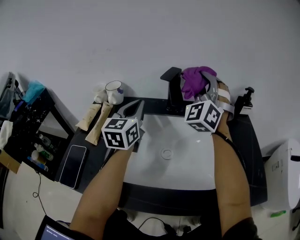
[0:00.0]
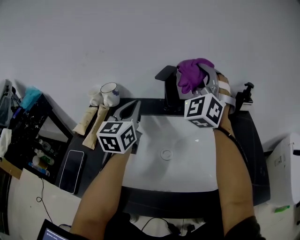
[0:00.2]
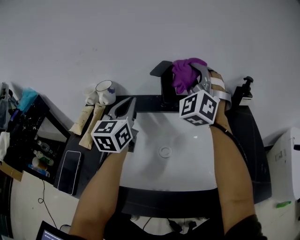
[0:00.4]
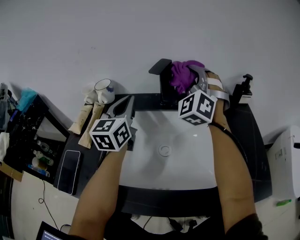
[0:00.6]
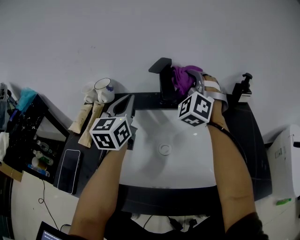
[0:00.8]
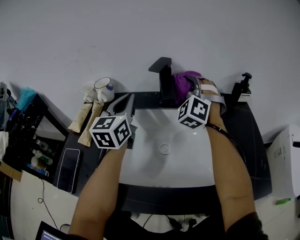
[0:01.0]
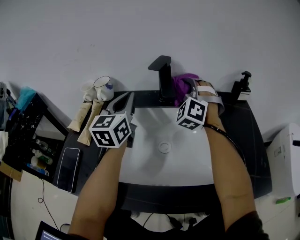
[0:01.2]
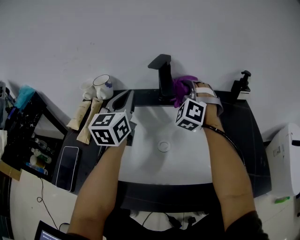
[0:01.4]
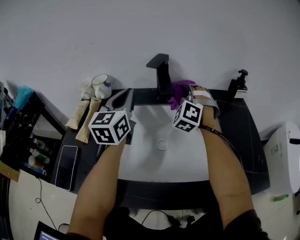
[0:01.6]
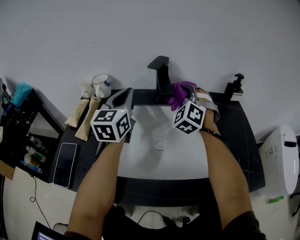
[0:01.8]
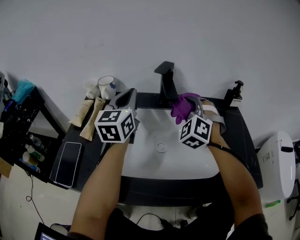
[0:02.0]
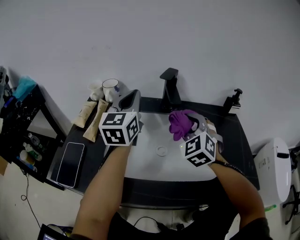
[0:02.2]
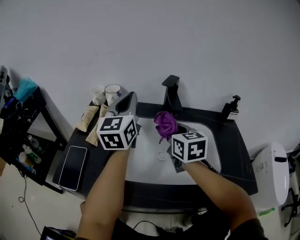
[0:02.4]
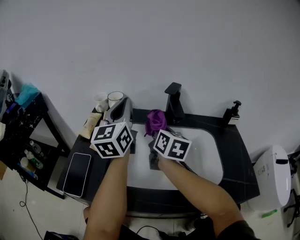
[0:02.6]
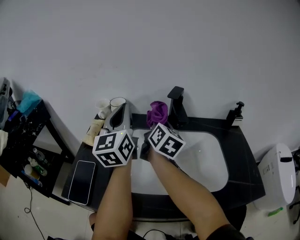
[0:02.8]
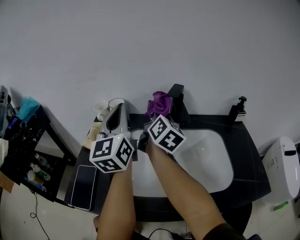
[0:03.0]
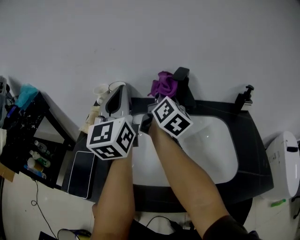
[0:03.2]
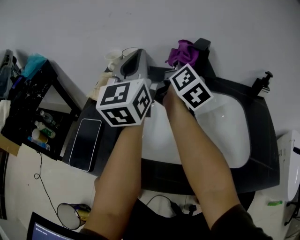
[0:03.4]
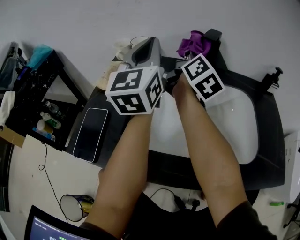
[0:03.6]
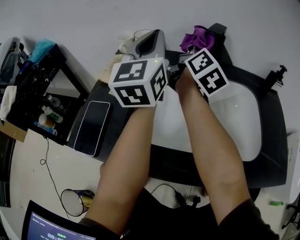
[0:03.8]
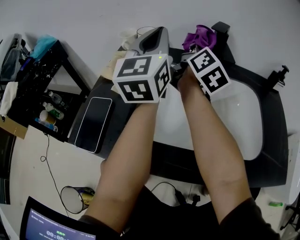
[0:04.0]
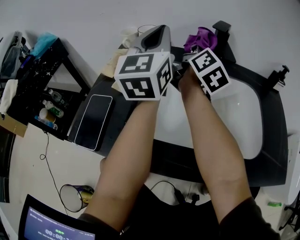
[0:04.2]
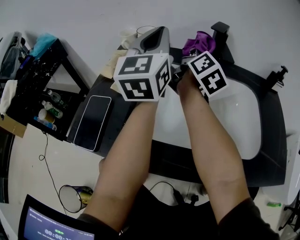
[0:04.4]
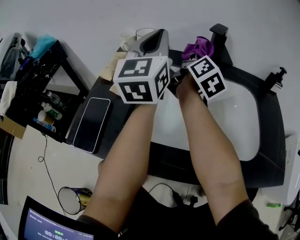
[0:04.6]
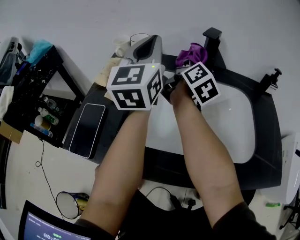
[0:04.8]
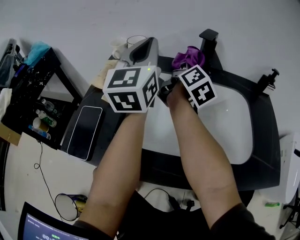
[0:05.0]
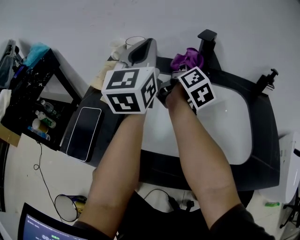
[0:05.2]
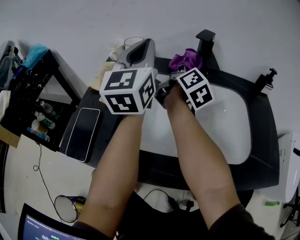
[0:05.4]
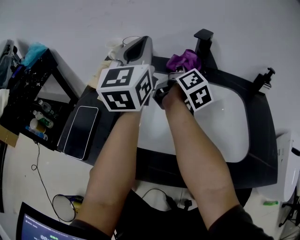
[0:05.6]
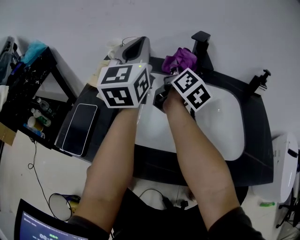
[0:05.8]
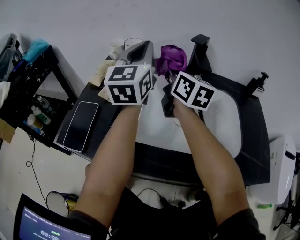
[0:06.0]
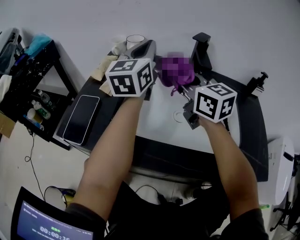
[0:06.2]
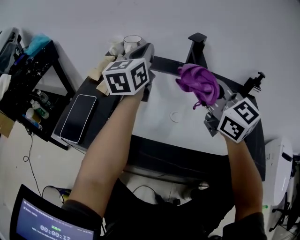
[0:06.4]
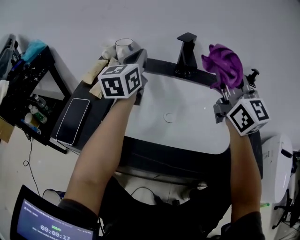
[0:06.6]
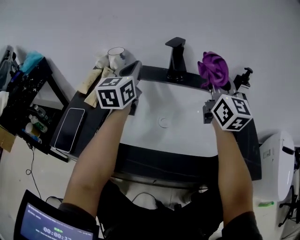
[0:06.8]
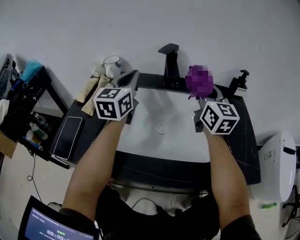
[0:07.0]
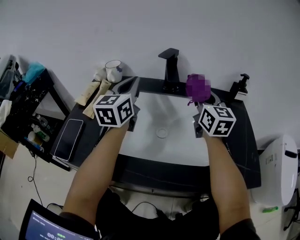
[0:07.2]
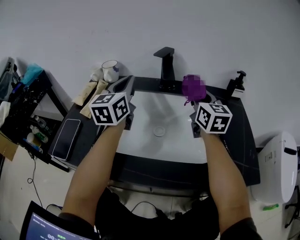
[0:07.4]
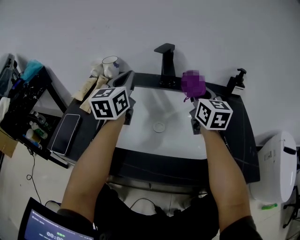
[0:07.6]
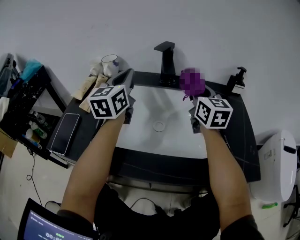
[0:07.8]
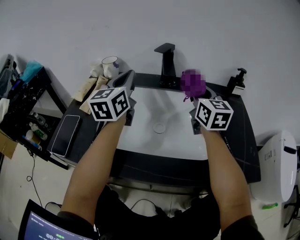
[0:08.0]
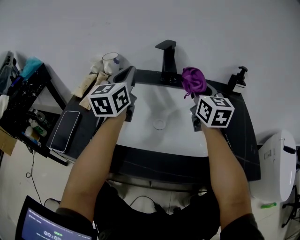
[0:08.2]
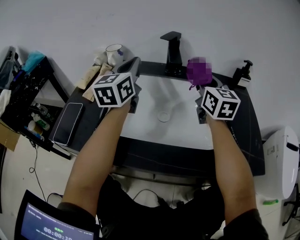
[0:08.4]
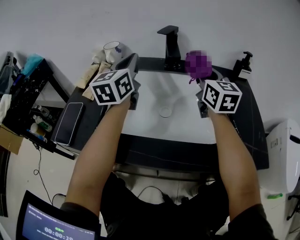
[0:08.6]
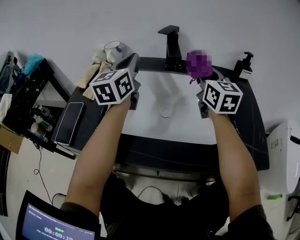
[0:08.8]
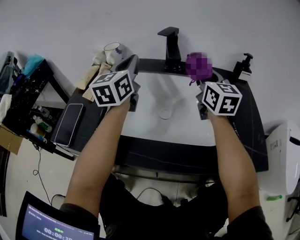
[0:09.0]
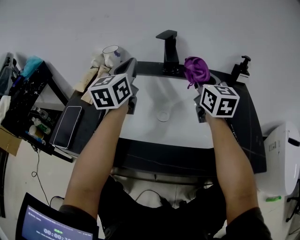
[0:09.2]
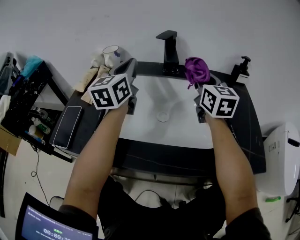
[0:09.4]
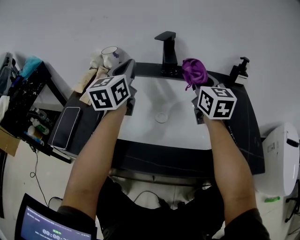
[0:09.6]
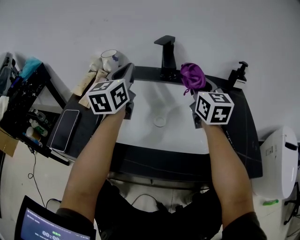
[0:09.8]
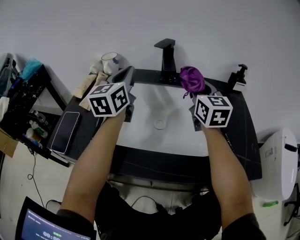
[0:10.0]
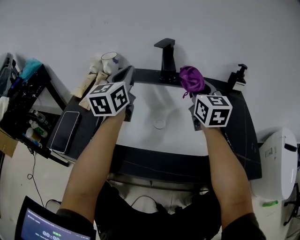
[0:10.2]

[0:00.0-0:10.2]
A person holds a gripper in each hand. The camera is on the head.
0:00.0 to 0:01.4: The right gripper heads downward, covering some 15 cm, and turns by about 30 degrees.
0:01.4 to 0:03.0: The right gripper is displaced to the left, upward and backward by approximately 15 cm, and rolls clockwise, seen from behind, by approximately 110 degrees, while the left gripper is displaced upward, to the left and backward by some 15 cm, and changes its angle by roughly 20 degrees.
0:03.0 to 0:04.4: There are only small adjustments of the grippers.
0:04.4 to 0:05.8: There are only small adjustments of the grippers.
0:05.8 to 0:07.2: The left gripper shifts about 10 cm downward and to the right. The right gripper heads to the right and backward, covering about 20 cm, and rotates around the line of its fingers by approximately 40 degrees, counterclockwise from behind.
0:07.2 to 0:08.8: The two grippers keep their place.
0:08.8 to 0:10.2: Neither gripper changes place.

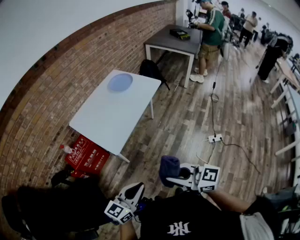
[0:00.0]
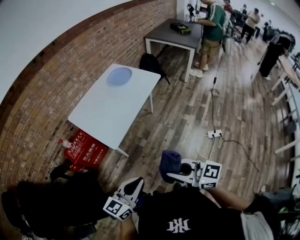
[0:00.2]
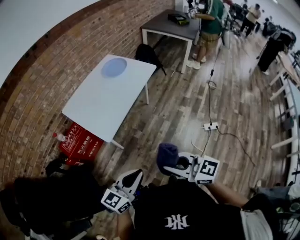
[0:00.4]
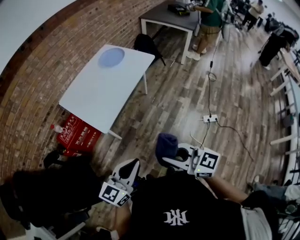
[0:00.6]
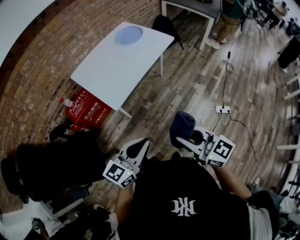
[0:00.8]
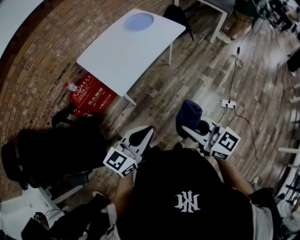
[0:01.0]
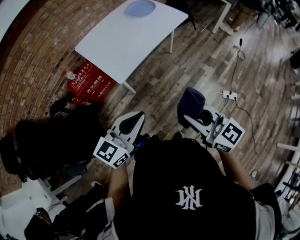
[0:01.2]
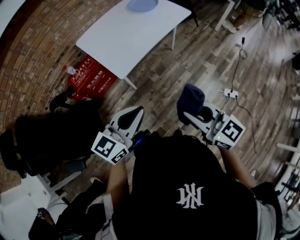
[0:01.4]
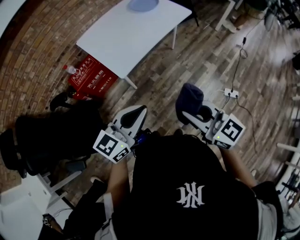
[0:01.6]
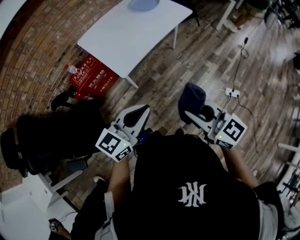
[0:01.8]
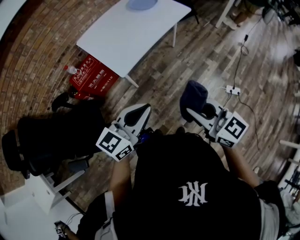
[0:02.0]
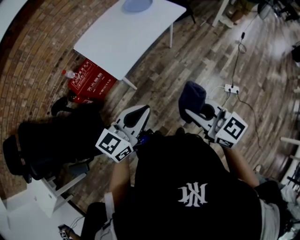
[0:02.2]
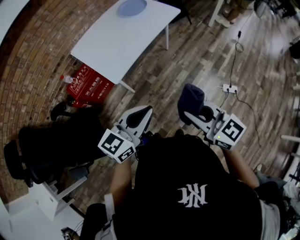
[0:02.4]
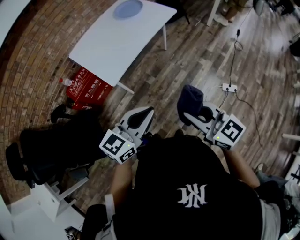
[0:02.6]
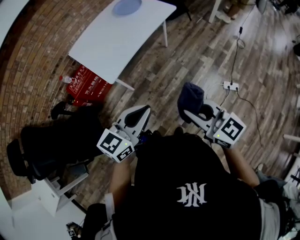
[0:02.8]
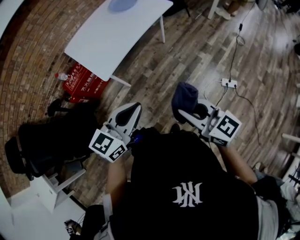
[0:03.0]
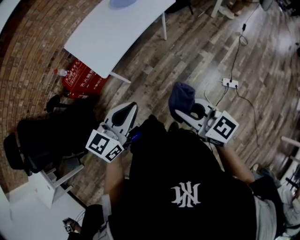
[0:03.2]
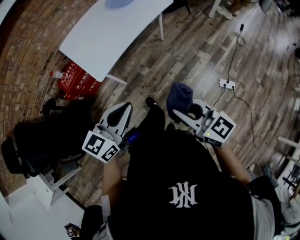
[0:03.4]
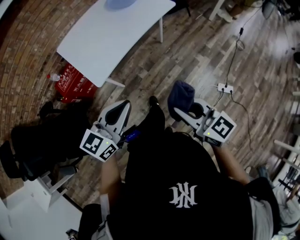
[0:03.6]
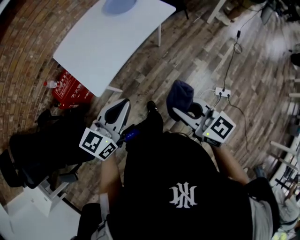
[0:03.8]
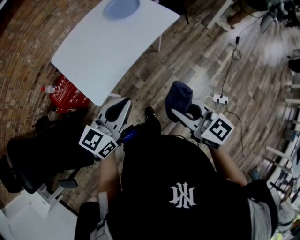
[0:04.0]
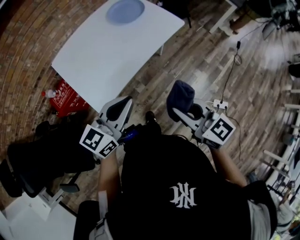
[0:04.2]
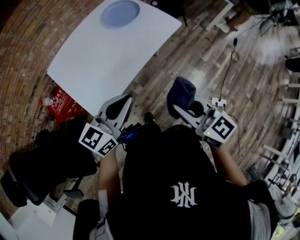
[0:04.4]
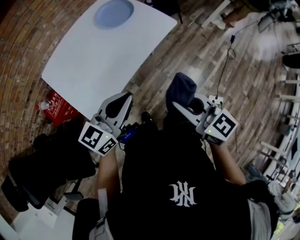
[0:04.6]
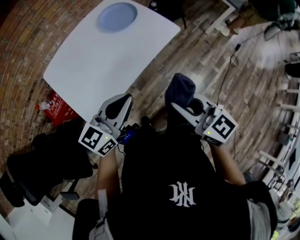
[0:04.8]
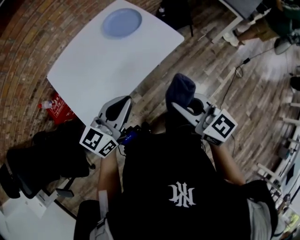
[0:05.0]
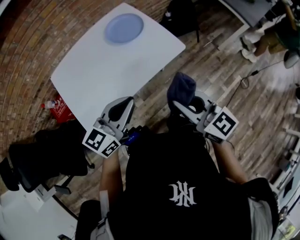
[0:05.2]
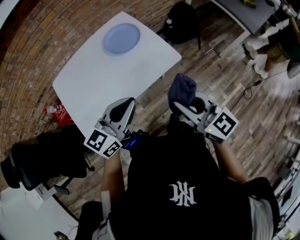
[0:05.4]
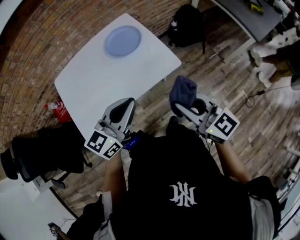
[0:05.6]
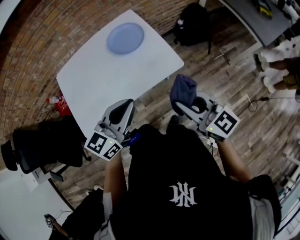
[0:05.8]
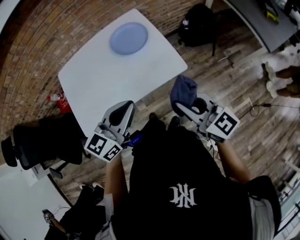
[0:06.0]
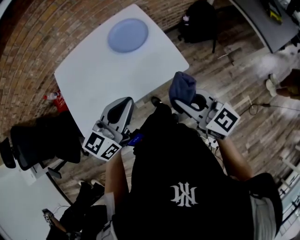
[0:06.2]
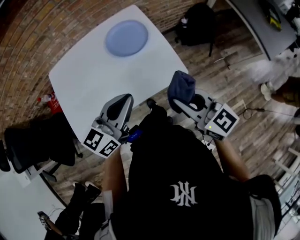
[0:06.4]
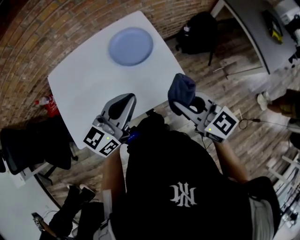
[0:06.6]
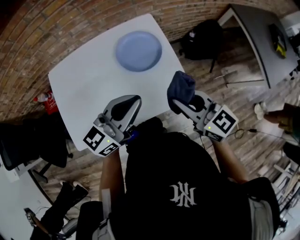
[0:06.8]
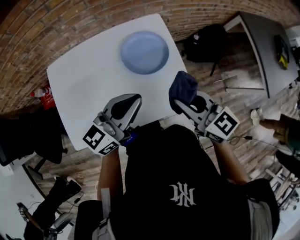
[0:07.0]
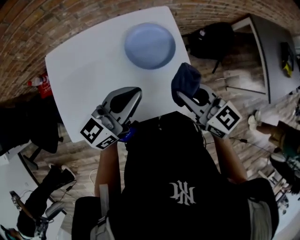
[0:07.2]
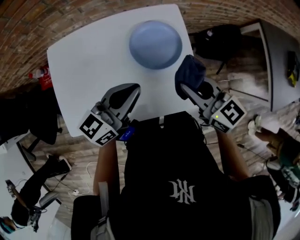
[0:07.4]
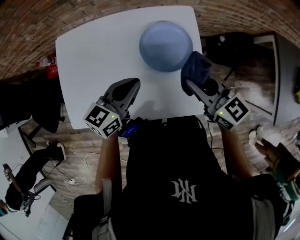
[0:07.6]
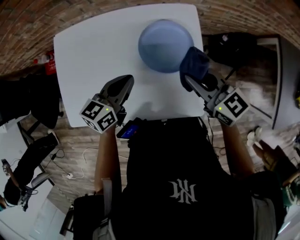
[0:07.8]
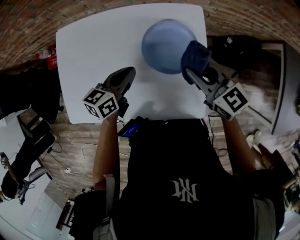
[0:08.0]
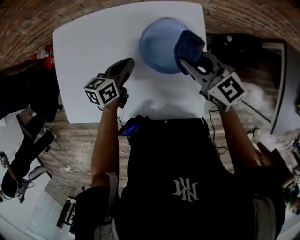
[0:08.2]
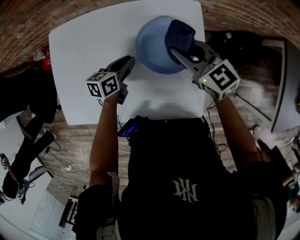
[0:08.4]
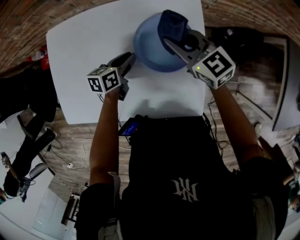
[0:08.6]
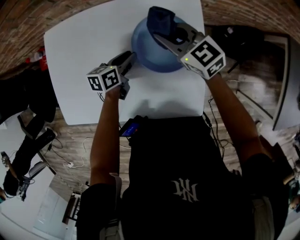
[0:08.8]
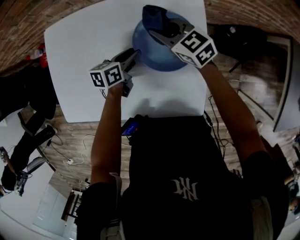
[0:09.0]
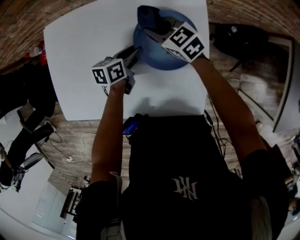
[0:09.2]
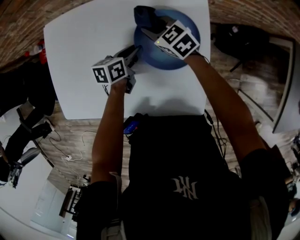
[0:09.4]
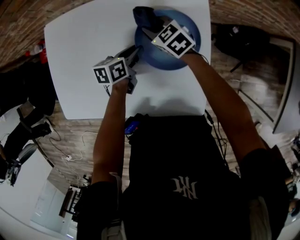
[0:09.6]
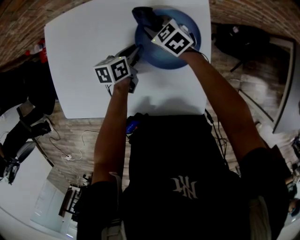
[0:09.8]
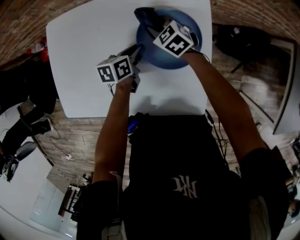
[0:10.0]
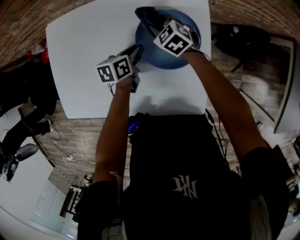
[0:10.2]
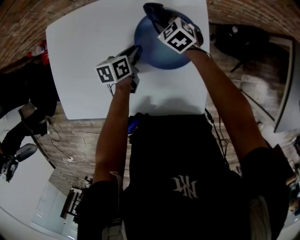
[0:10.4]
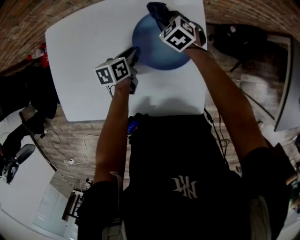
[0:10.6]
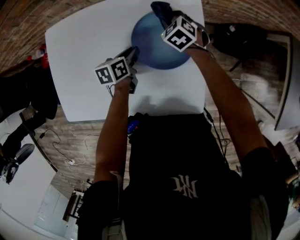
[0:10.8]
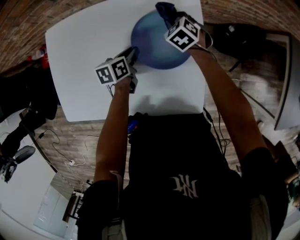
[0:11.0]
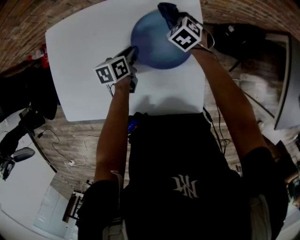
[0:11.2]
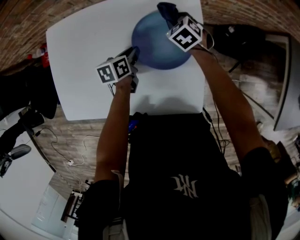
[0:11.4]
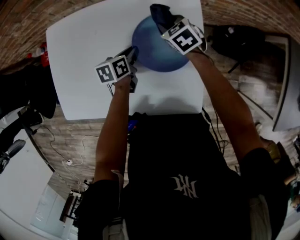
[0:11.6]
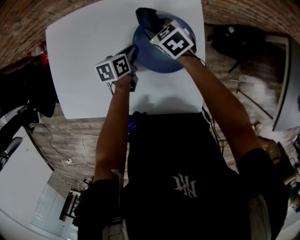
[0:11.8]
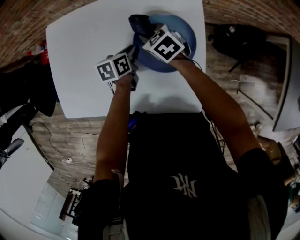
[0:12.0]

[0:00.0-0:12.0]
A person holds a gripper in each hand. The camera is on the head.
0:00.0 to 0:01.6: The right gripper goes about 5 cm to the right. Meanwhile the left gripper shifts about 5 cm forward.
0:01.6 to 0:03.0: The two grippers go about 10 cm to the right.
0:03.0 to 0:04.4: The grippers both shift forward by some 30 cm.
0:04.4 to 0:06.0: The right gripper is displaced forward and to the right by about 30 cm, and swivels roughly 20 degrees; the left gripper heads to the right and forward, covering approximately 25 cm, and rotates approximately 20 degrees.
0:06.0 to 0:07.6: The grippers both shift forward by roughly 30 cm. The left gripper rotates some 20 degrees. Meanwhile the right gripper swivels approximately 20 degrees.
0:07.6 to 0:09.0: The right gripper is displaced forward and downward by about 25 cm. Meanwhile the left gripper shifts some 25 cm downward and forward, turns by about 30 degrees, and opens up.
0:09.0 to 0:10.4: The right gripper shifts some 10 cm downward, and changes its angle by some 30 degrees.
0:10.4 to 0:12.0: The right gripper goes some 5 cm backward.

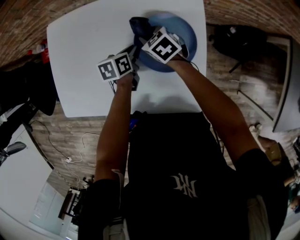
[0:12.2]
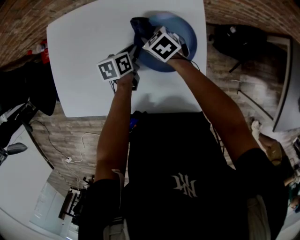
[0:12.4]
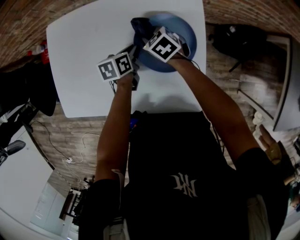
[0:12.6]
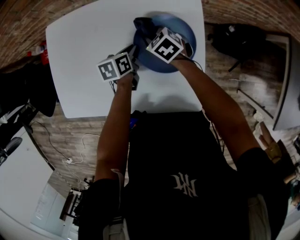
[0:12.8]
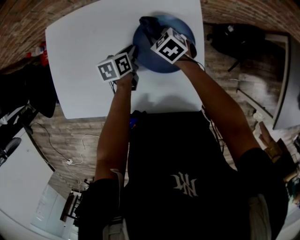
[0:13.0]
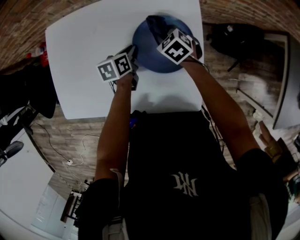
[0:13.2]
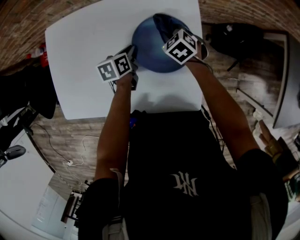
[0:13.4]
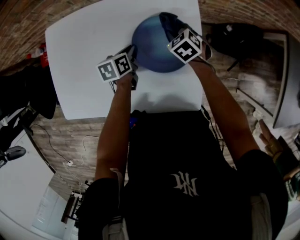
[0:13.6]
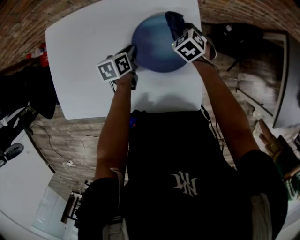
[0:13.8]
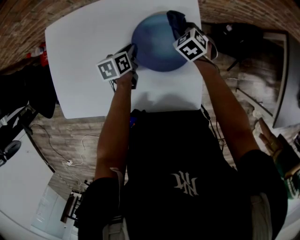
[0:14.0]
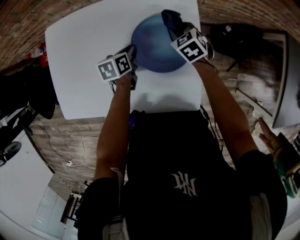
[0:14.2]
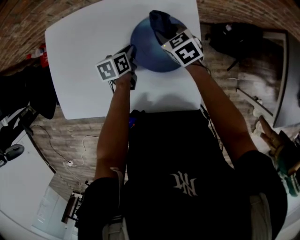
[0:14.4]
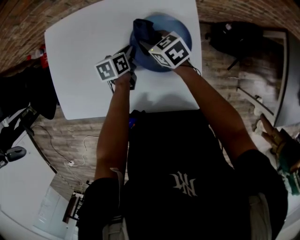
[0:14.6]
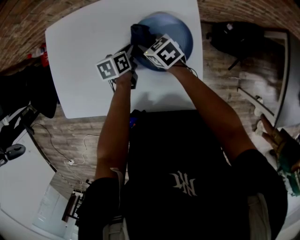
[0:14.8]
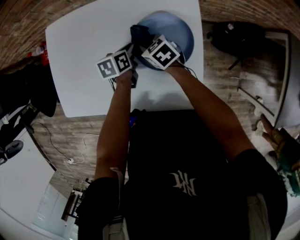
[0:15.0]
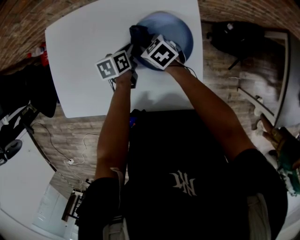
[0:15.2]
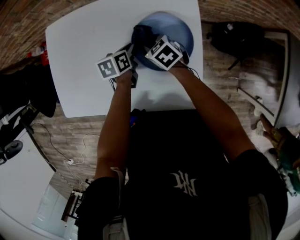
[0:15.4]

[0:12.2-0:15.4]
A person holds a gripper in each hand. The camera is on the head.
0:12.2 to 0:13.8: The right gripper heads to the right, covering about 15 cm, and swivels approximately 20 degrees.
0:13.8 to 0:15.4: The right gripper heads to the left, covering roughly 15 cm, and swivels some 30 degrees.
